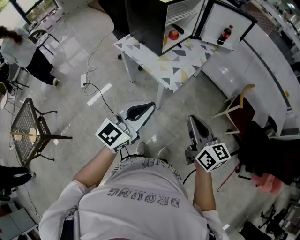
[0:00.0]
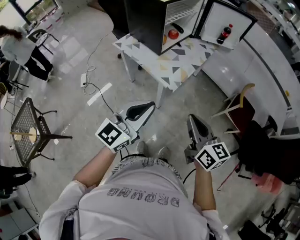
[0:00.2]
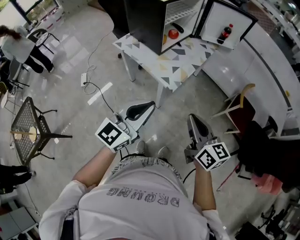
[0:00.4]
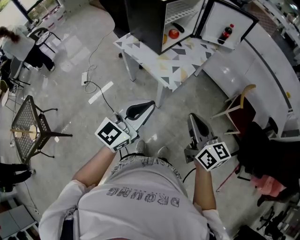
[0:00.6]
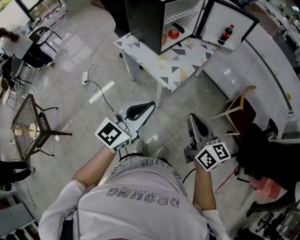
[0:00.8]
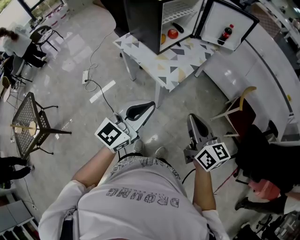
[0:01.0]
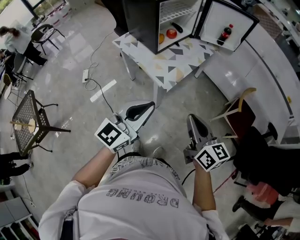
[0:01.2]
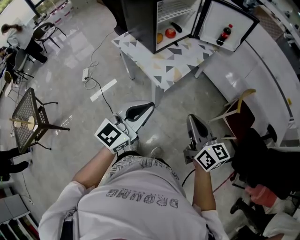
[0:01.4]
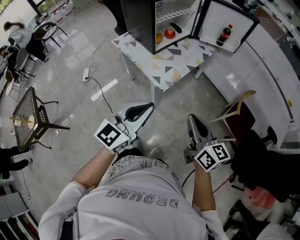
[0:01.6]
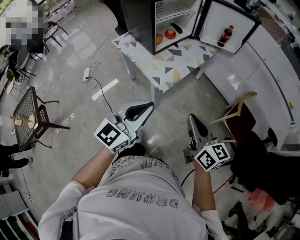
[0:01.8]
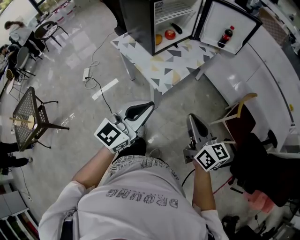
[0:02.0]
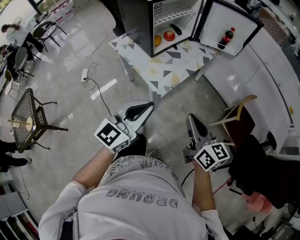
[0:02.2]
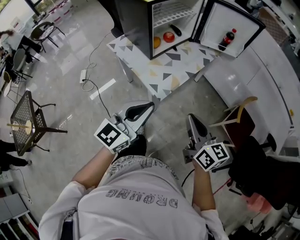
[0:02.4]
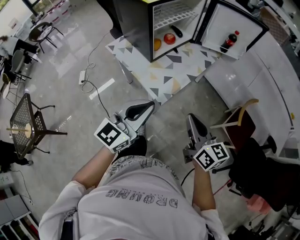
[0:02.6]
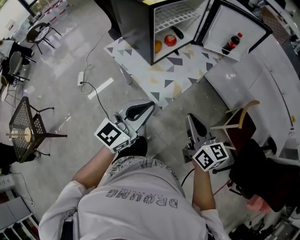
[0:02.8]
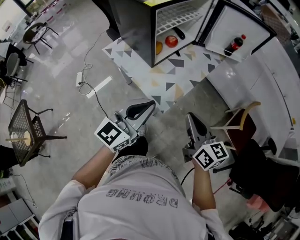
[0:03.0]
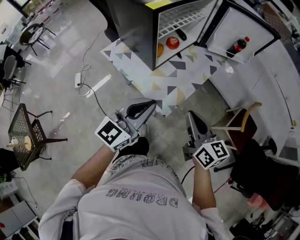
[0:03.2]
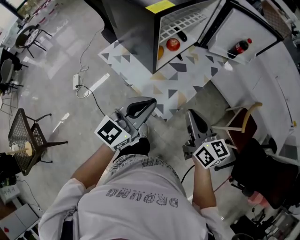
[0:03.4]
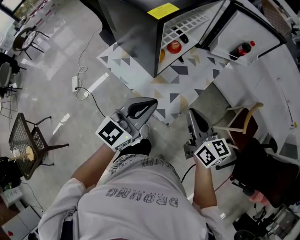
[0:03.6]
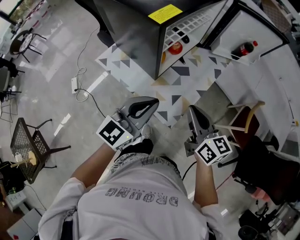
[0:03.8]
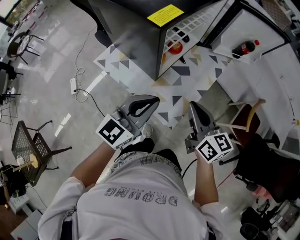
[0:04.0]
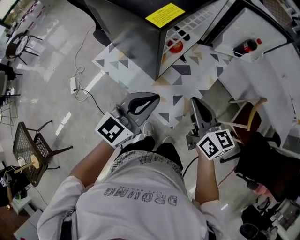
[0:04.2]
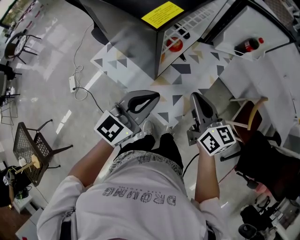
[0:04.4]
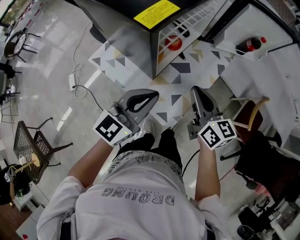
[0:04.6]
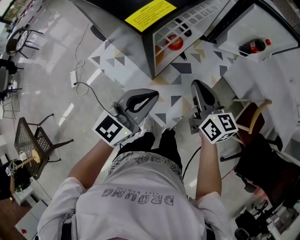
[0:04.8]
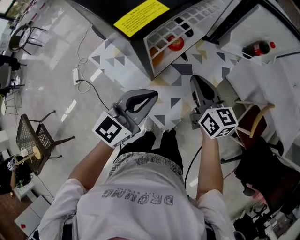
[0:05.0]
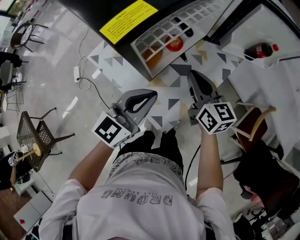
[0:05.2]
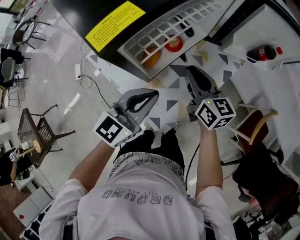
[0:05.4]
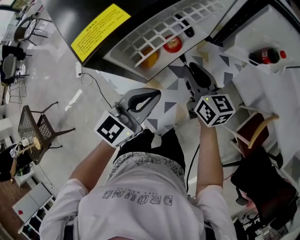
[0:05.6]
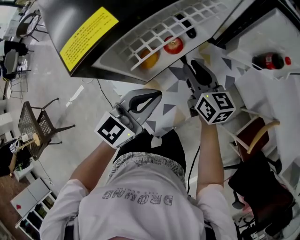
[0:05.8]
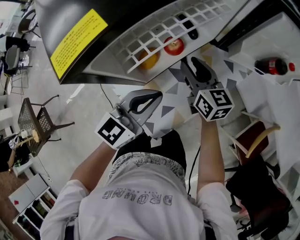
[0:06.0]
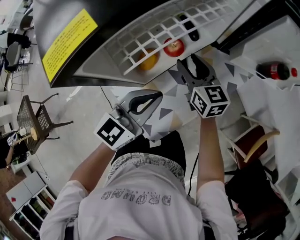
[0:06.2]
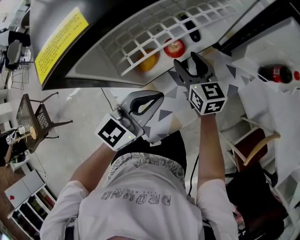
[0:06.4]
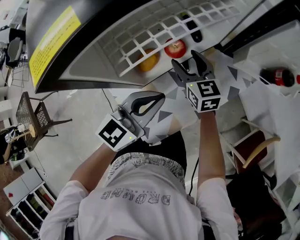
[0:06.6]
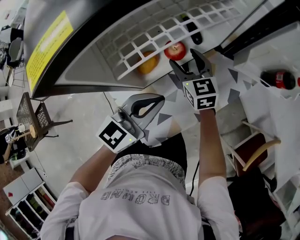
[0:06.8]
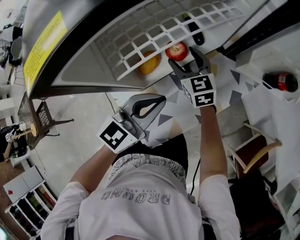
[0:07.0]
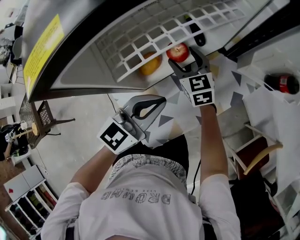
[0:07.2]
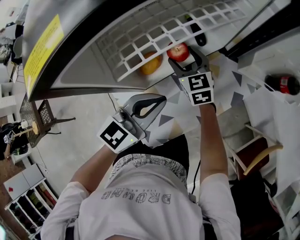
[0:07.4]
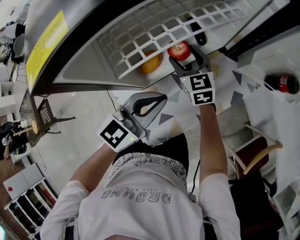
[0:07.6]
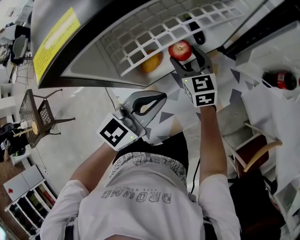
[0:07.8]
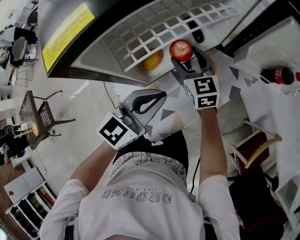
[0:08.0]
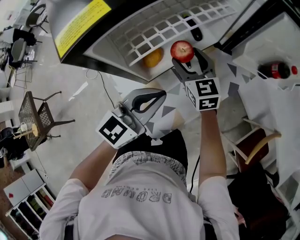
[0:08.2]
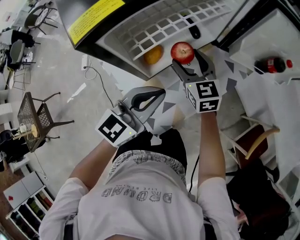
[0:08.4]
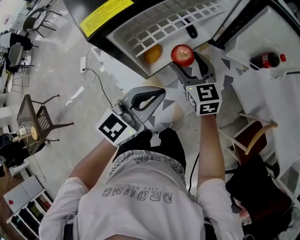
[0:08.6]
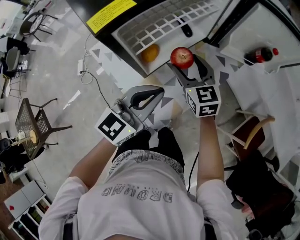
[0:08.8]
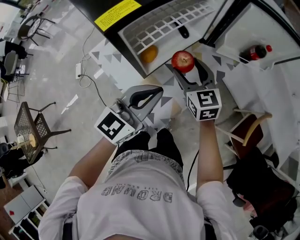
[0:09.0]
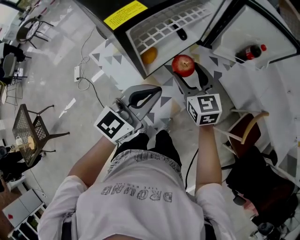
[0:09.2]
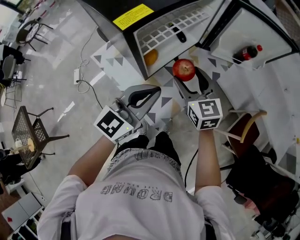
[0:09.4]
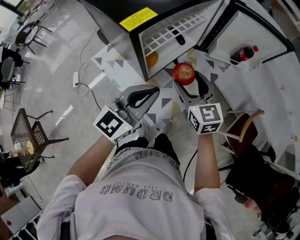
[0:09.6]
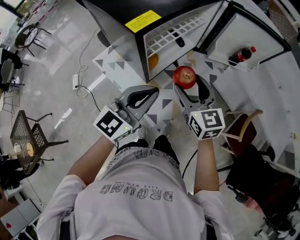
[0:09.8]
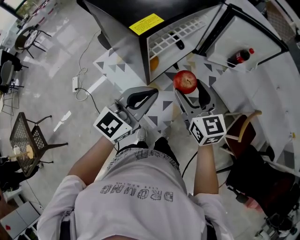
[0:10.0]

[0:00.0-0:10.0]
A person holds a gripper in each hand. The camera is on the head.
0:00.0 to 0:01.4: The grippers both shift to the right by approximately 10 cm.
0:01.4 to 0:02.8: The two grippers go some 15 cm forward.
0:02.8 to 0:04.2: Both grippers travel together forward and to the left, about 20 cm.
0:04.2 to 0:05.8: The right gripper is displaced forward and downward by about 25 cm. The left gripper is displaced forward, to the right and downward by roughly 15 cm.
0:05.8 to 0:07.2: The left gripper shifts by about 5 cm. The right gripper shifts some 15 cm downward, forward and to the left, changes its angle by approximately 30 degrees, and opens.
0:07.2 to 0:08.6: Both grippers travel together upward and backward, approximately 10 cm.
0:08.6 to 0:10.0: The right gripper is displaced backward and upward by some 20 cm; the left gripper moves upward and backward, roughly 10 cm.

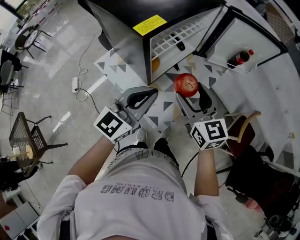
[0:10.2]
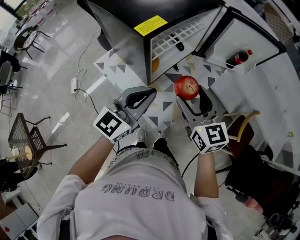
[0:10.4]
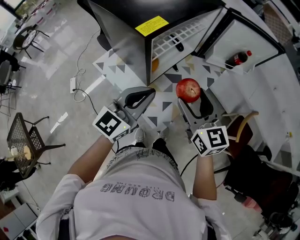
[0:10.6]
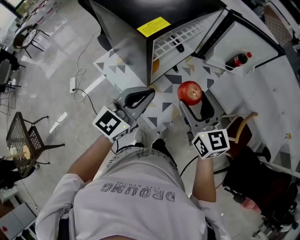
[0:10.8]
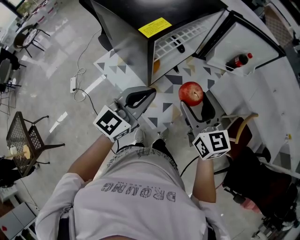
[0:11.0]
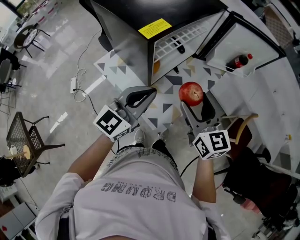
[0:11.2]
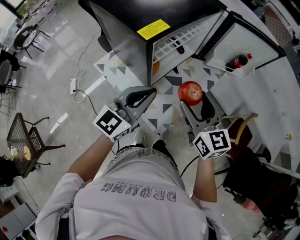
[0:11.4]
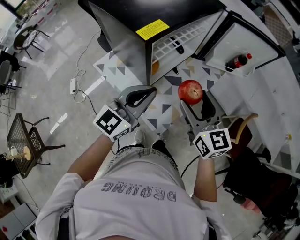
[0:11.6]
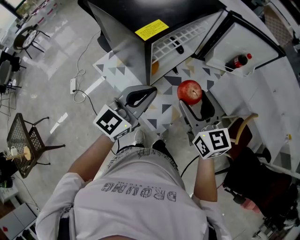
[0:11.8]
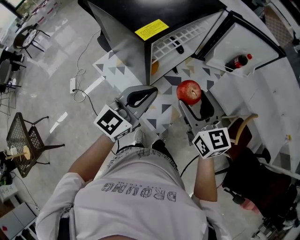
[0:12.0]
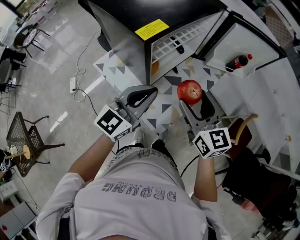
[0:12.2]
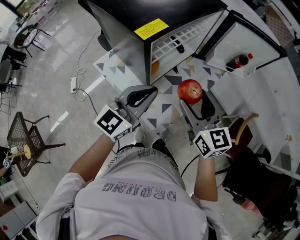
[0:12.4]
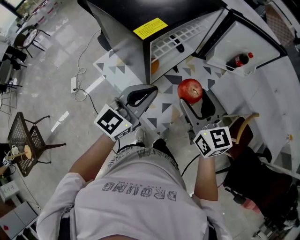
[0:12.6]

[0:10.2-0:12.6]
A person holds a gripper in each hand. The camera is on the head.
0:10.2 to 0:11.4: There are only small adjustments of the grippers.
0:11.4 to 0:12.6: Both grippers stay about where they are.

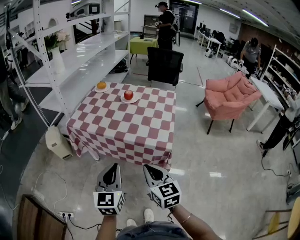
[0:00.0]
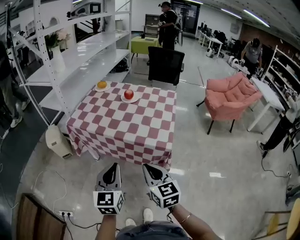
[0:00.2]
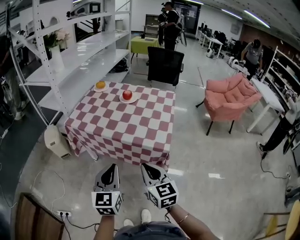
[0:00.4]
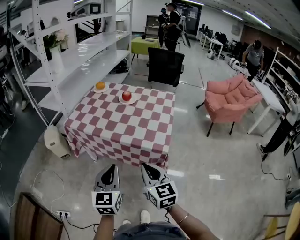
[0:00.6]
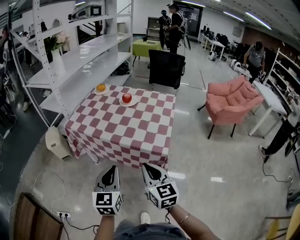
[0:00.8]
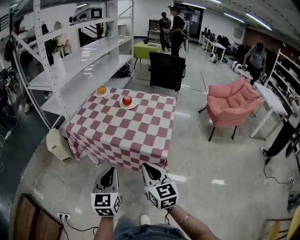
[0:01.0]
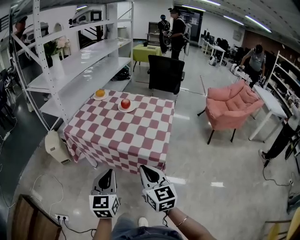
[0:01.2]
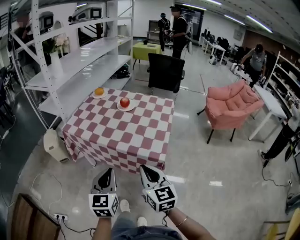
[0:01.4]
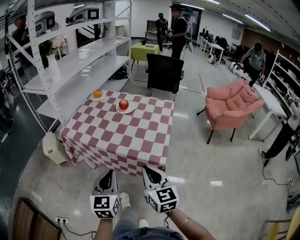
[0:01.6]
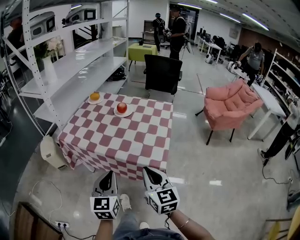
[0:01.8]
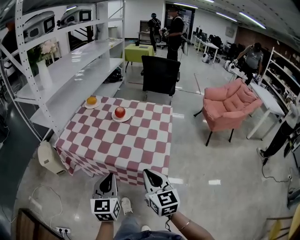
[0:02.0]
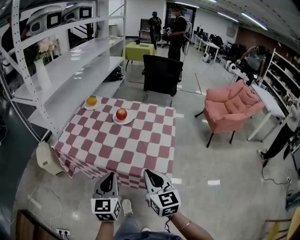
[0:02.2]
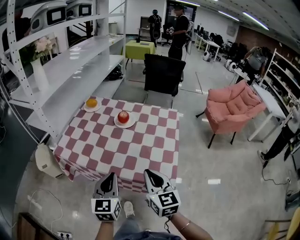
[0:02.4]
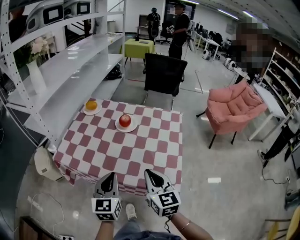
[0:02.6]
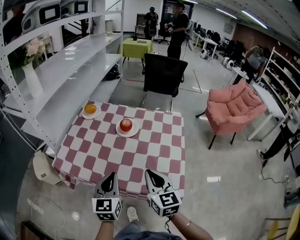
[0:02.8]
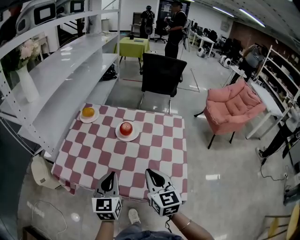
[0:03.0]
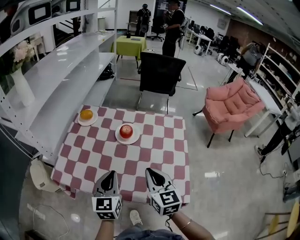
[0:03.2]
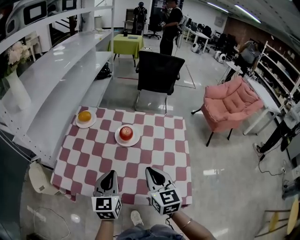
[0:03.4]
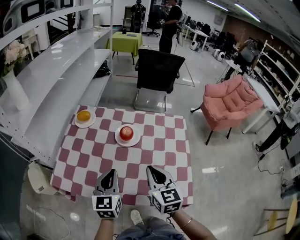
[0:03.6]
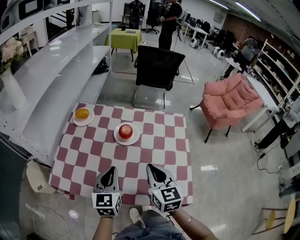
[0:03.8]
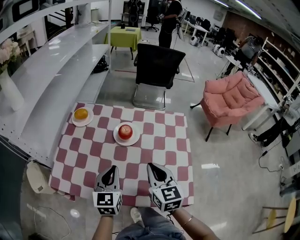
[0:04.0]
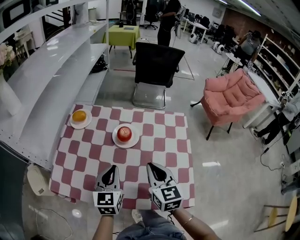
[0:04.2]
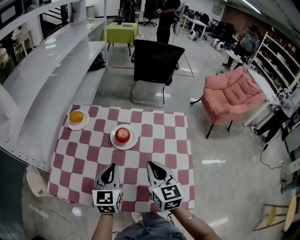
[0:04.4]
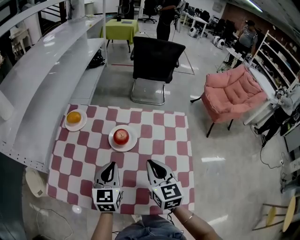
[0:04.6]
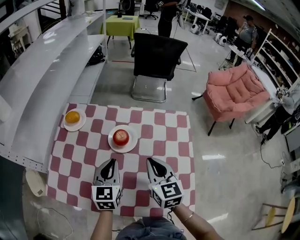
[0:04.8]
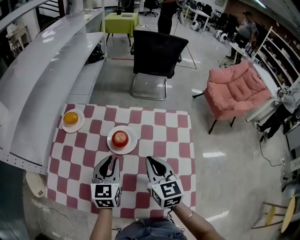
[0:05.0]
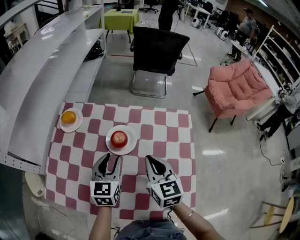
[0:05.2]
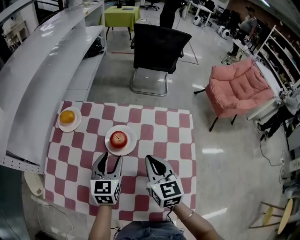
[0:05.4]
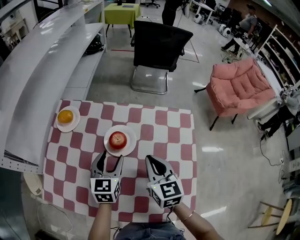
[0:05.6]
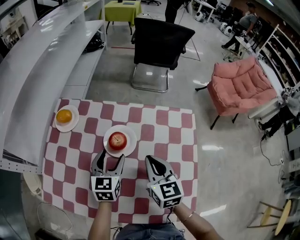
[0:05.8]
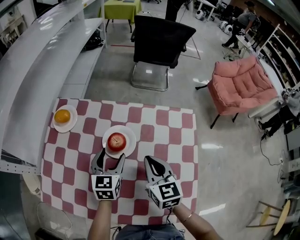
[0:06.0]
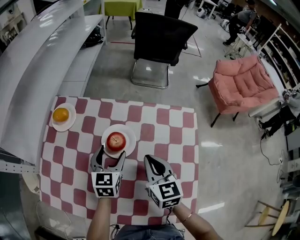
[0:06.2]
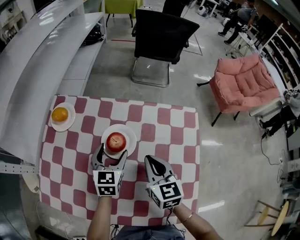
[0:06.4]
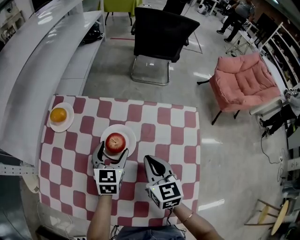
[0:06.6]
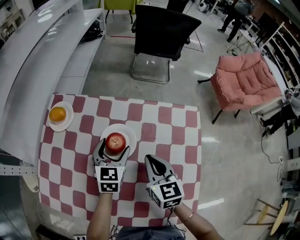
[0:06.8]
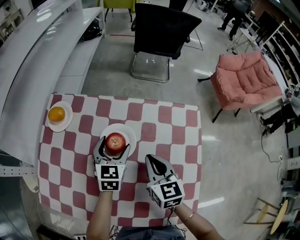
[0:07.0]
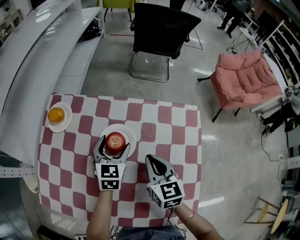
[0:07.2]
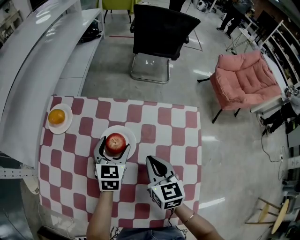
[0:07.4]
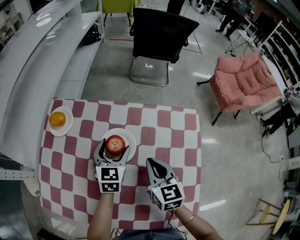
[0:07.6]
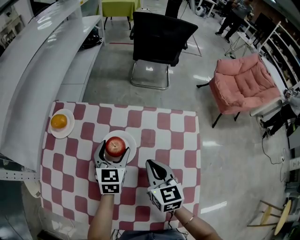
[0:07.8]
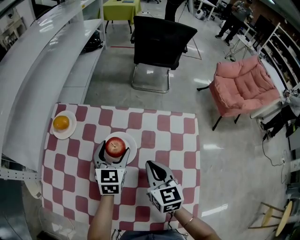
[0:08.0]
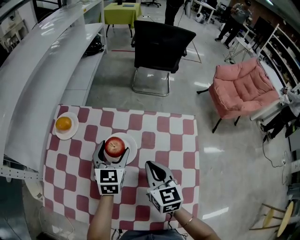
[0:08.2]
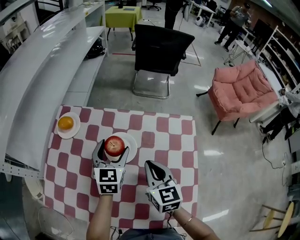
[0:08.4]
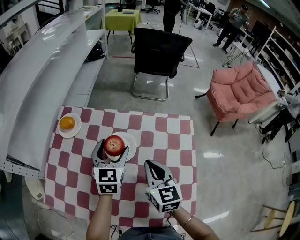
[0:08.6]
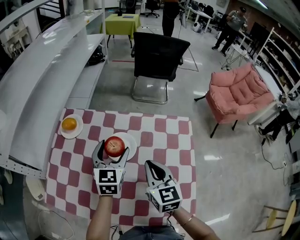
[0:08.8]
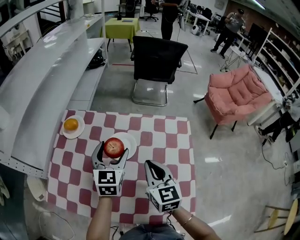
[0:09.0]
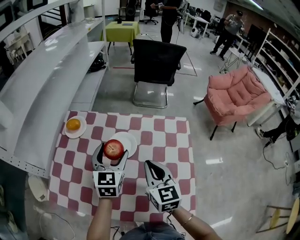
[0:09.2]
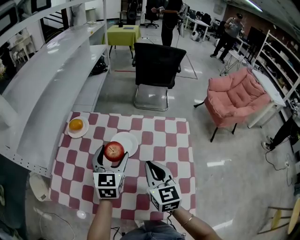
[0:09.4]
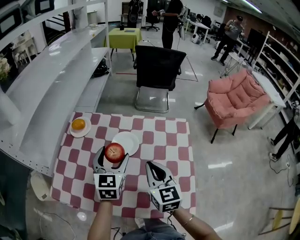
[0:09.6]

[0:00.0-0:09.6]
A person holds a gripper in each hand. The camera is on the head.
0:00.0 to 0:01.6: The right gripper is displaced to the right and forward by about 10 cm. The left gripper travels forward by roughly 5 cm.
0:01.6 to 0:03.2: Both grippers travel together forward, about 30 cm.
0:03.2 to 0:04.8: Both grippers move forward, approximately 15 cm.
0:04.8 to 0:06.4: Both grippers travel together forward and downward, some 10 cm. The left gripper opens up.
0:06.4 to 0:08.0: There are only small adjustments of the grippers.
0:08.0 to 0:09.6: Both grippers travel together backward and upward, roughly 15 cm.

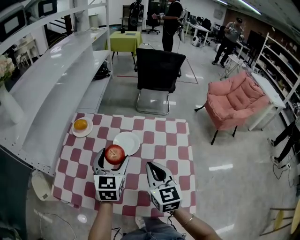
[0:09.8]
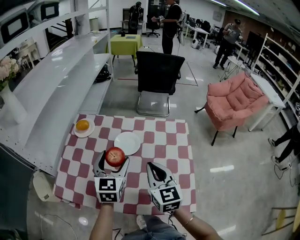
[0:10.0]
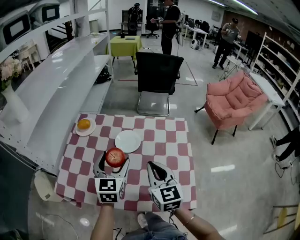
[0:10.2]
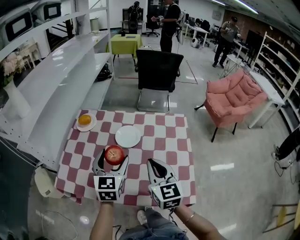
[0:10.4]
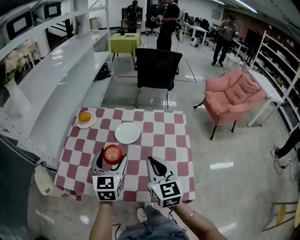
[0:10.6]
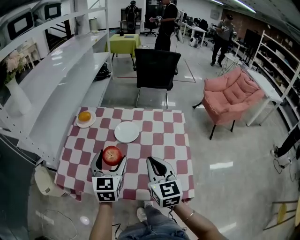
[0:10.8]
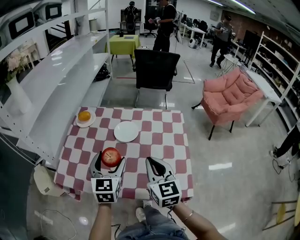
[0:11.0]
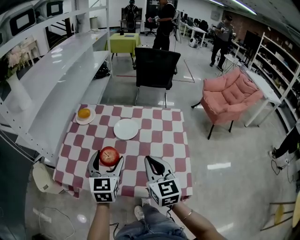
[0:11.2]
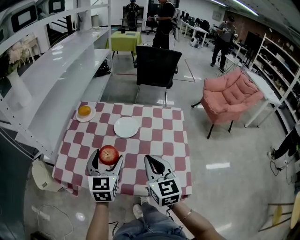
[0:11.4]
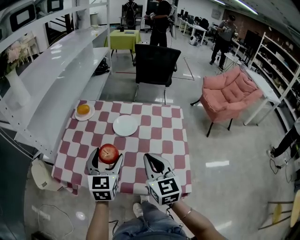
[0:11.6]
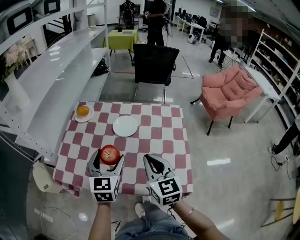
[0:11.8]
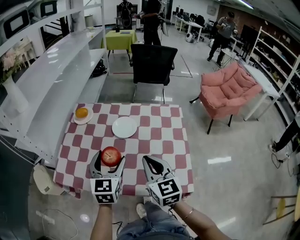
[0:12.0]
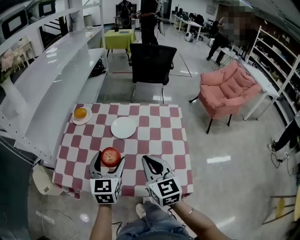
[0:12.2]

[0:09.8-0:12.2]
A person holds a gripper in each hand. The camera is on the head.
0:09.8 to 0:11.0: The grippers both shift backward by approximately 10 cm.
0:11.0 to 0:12.2: The grippers stay close to where they were, moving slightly.
